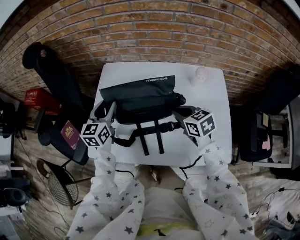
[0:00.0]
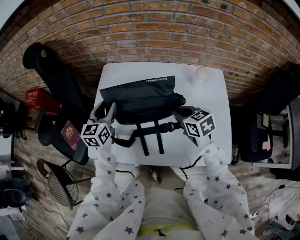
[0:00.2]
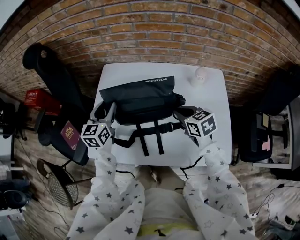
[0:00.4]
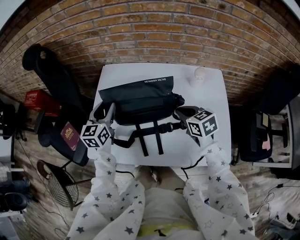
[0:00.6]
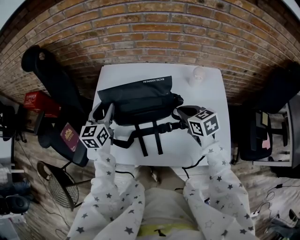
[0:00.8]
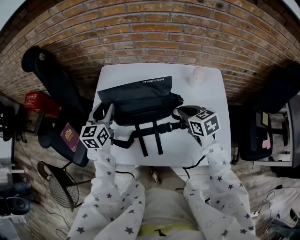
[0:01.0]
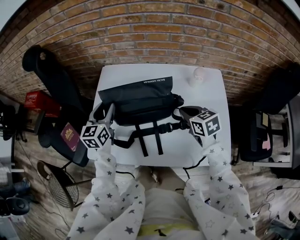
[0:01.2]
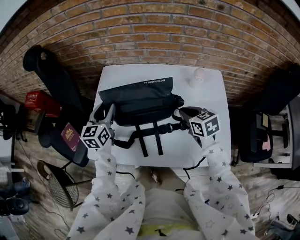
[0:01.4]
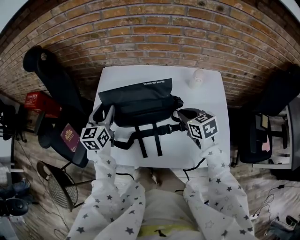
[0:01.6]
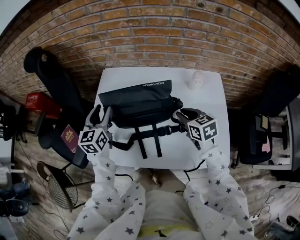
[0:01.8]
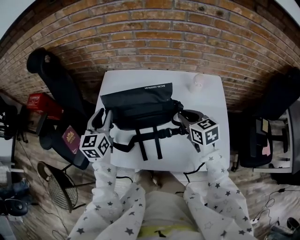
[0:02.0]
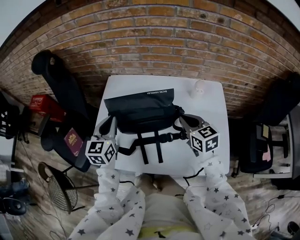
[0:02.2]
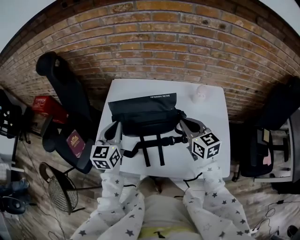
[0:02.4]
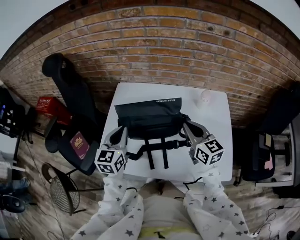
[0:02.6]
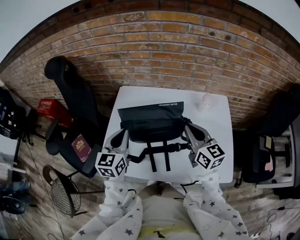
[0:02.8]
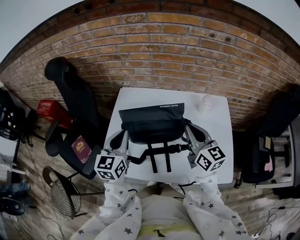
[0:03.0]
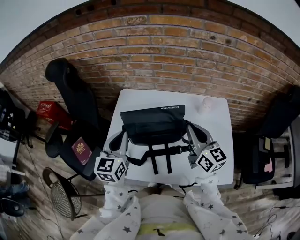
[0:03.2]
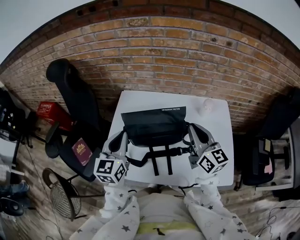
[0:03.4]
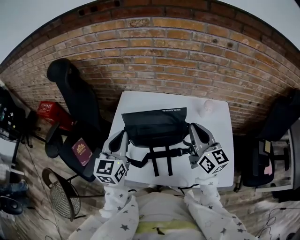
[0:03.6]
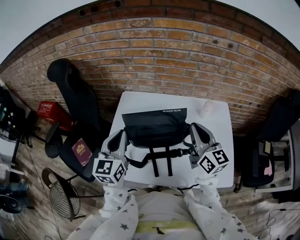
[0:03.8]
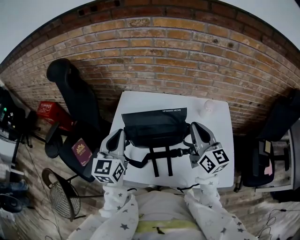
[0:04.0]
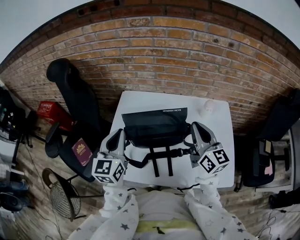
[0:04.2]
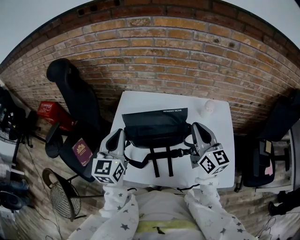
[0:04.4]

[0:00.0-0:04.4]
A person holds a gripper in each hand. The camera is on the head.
0:00.0 to 0:01.4: There are only small adjustments of the grippers.
0:01.4 to 0:03.0: The left gripper heads upward and backward, covering some 10 cm, and closes. The right gripper travels upward by approximately 15 cm, and points its fingers about 40 degrees further upward.
0:03.0 to 0:04.4: There are only small adjustments of the grippers.

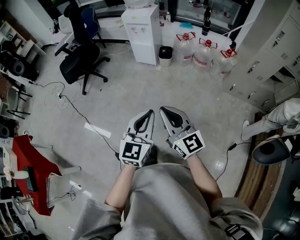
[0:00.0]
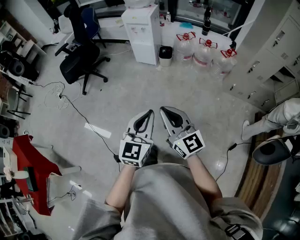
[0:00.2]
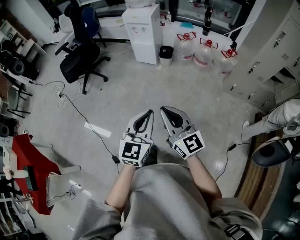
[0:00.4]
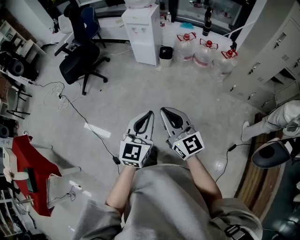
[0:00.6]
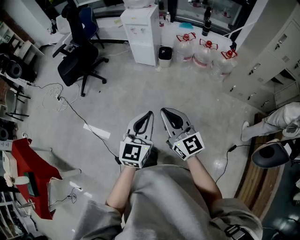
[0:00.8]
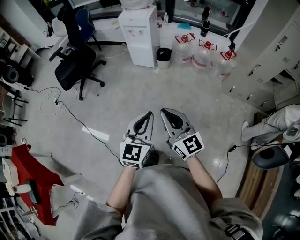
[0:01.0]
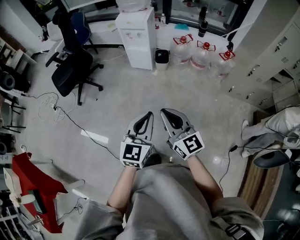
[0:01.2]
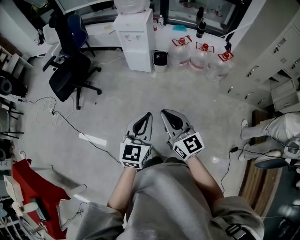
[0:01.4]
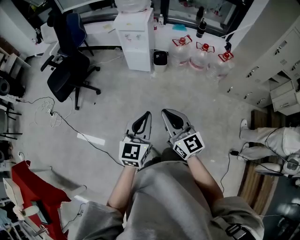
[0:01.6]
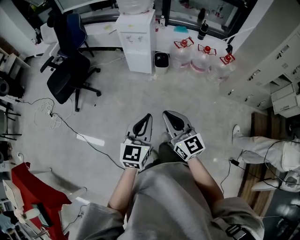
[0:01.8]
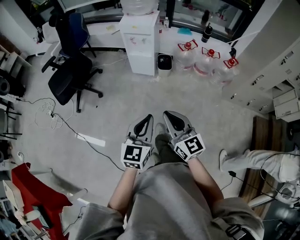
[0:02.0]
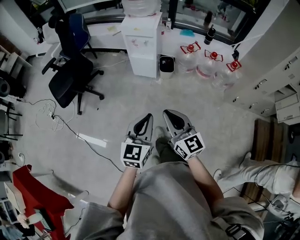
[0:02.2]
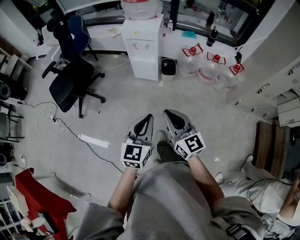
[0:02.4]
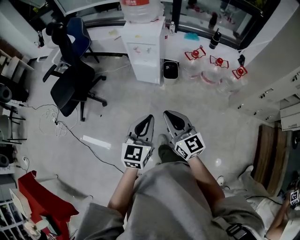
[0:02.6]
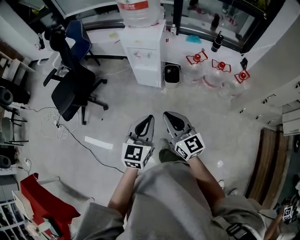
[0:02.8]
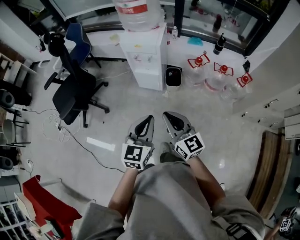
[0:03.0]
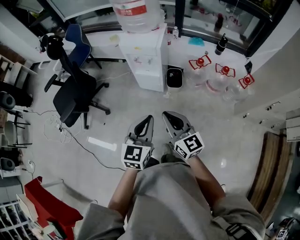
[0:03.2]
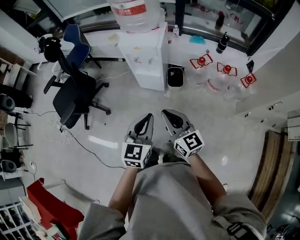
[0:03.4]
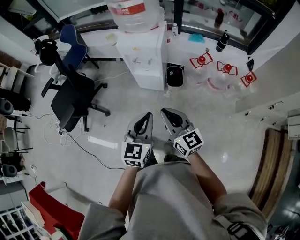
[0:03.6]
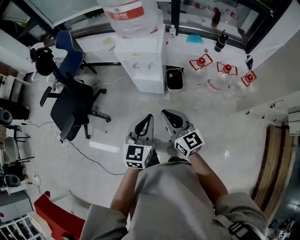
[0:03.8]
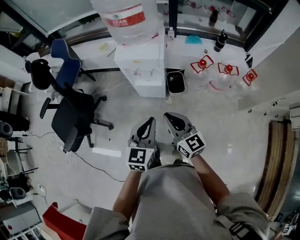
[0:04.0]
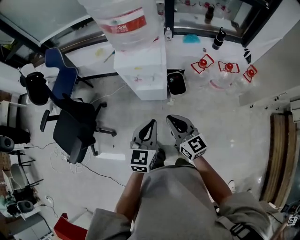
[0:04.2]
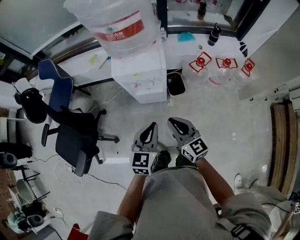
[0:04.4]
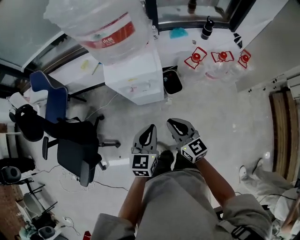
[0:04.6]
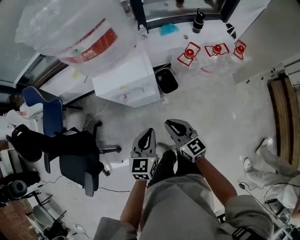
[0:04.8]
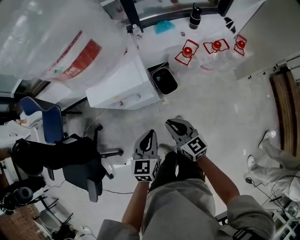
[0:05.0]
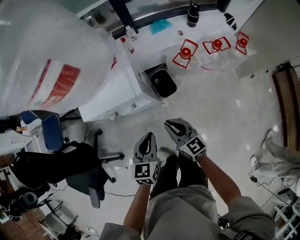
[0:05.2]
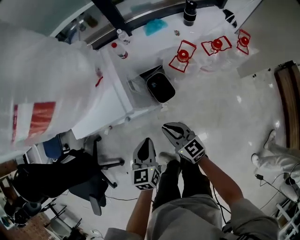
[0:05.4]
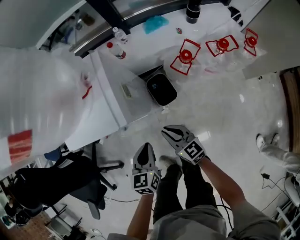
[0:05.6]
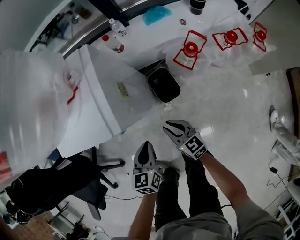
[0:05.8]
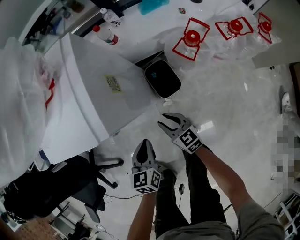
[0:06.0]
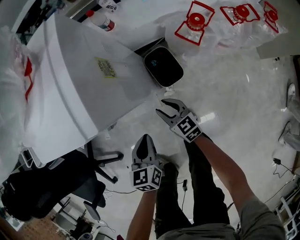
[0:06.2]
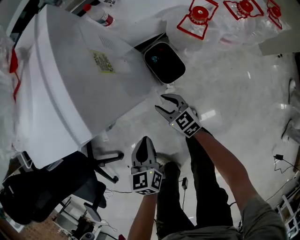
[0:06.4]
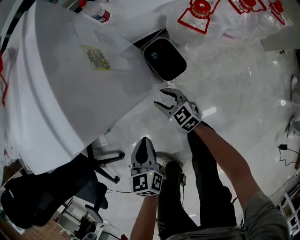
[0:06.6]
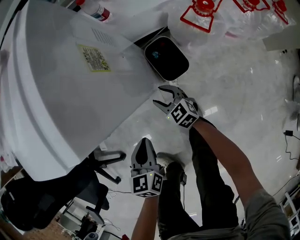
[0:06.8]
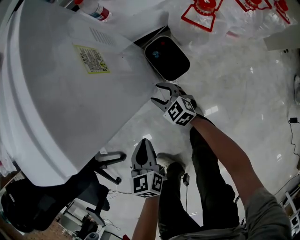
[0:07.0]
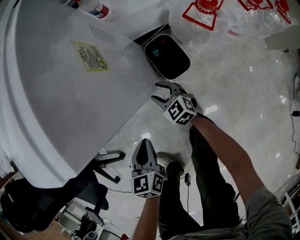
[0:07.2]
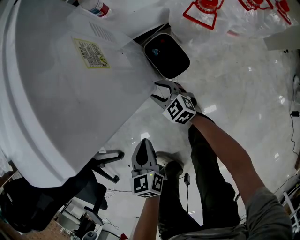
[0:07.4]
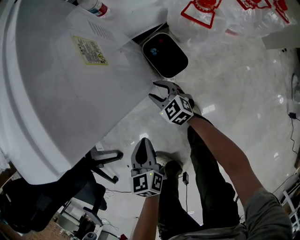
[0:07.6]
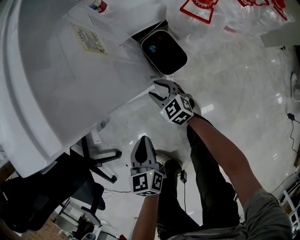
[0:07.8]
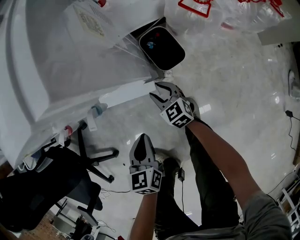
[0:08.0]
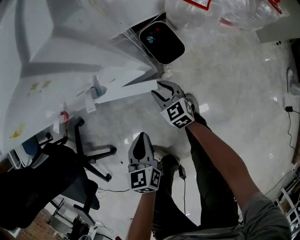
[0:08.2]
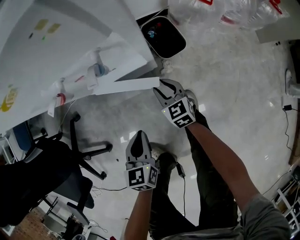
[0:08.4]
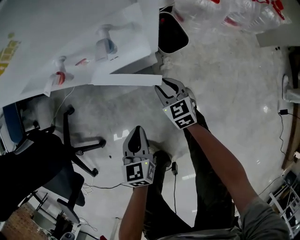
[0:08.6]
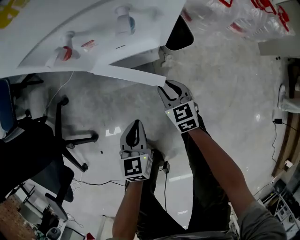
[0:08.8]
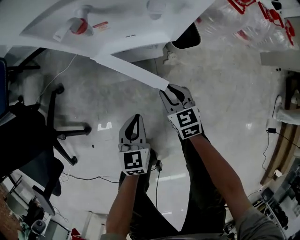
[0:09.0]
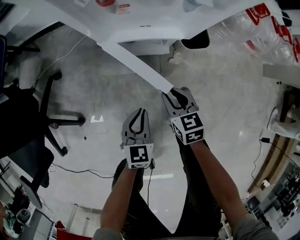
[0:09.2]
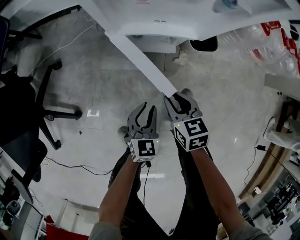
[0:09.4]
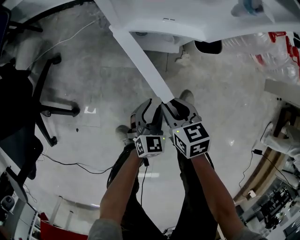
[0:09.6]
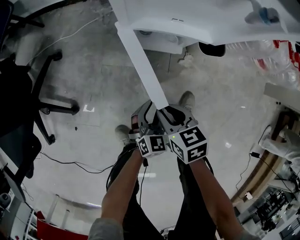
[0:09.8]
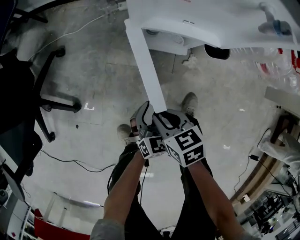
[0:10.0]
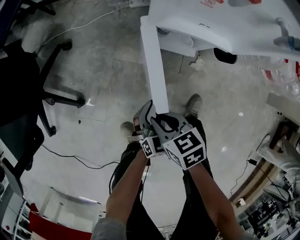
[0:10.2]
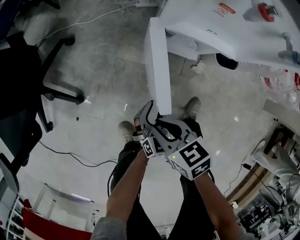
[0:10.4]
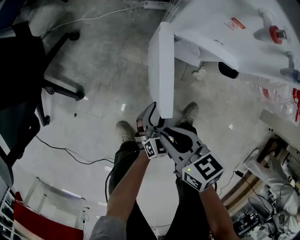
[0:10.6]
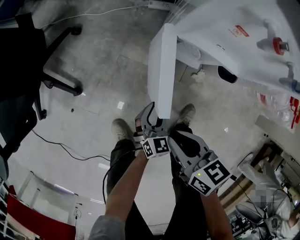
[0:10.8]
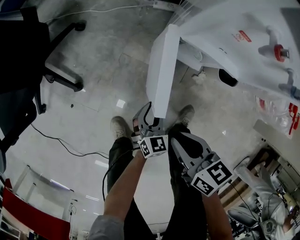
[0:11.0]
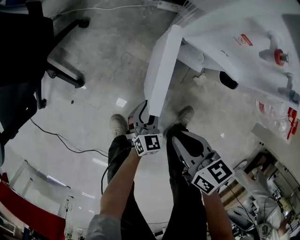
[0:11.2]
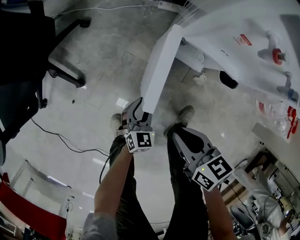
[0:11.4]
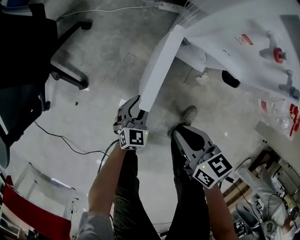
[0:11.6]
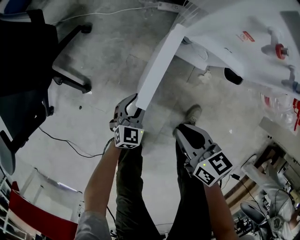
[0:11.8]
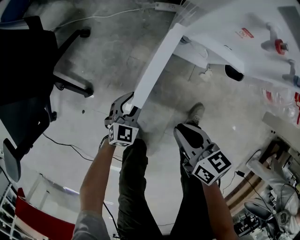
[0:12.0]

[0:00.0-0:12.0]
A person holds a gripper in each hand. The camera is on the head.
0:00.0 to 0:01.6: Both grippers move forward and to the left, approximately 20 cm.
0:01.6 to 0:03.0: The grippers both shift forward by approximately 30 cm.
0:03.0 to 0:04.4: Both grippers travel together forward, roughly 25 cm.
0:04.4 to 0:06.0: Both grippers travel together downward and forward, approximately 40 cm. The left gripper turns by about 20 degrees. The right gripper opens up.
0:06.0 to 0:07.6: The right gripper moves downward and forward, some 15 cm, and swivels some 20 degrees. Meanwhile the left gripper travels downward and to the left by about 10 cm.
0:07.6 to 0:09.0: The left gripper is displaced backward, downward and to the left by about 15 cm, while the right gripper travels backward by approximately 15 cm.
0:09.0 to 0:10.4: The right gripper changes place by about 20 cm, and rotates some 40 degrees, while the left gripper is displaced downward by some 15 cm, and opens up.
0:10.4 to 0:12.0: The left gripper shifts some 15 cm to the left and forward.

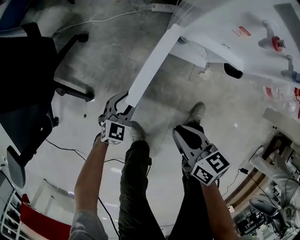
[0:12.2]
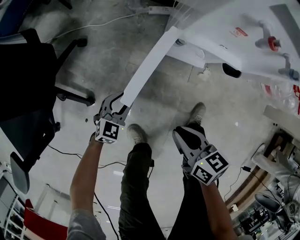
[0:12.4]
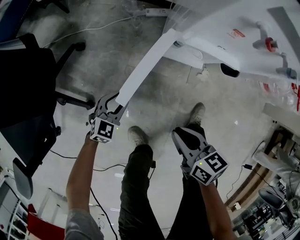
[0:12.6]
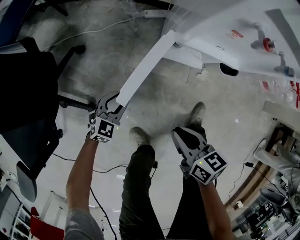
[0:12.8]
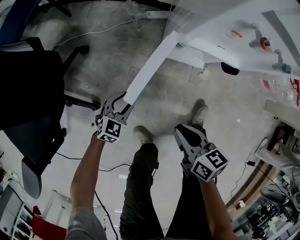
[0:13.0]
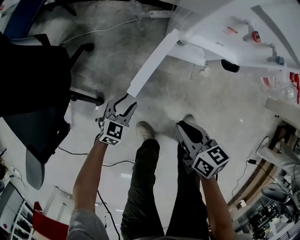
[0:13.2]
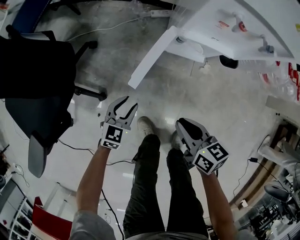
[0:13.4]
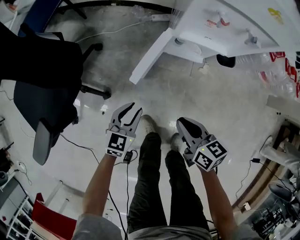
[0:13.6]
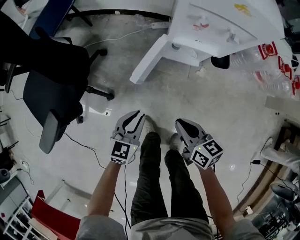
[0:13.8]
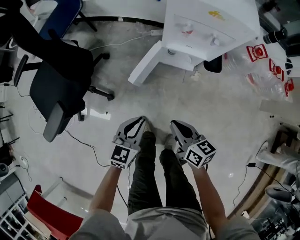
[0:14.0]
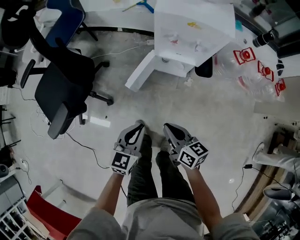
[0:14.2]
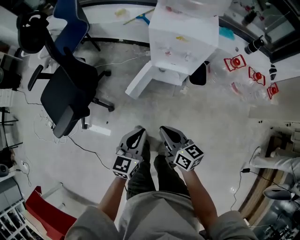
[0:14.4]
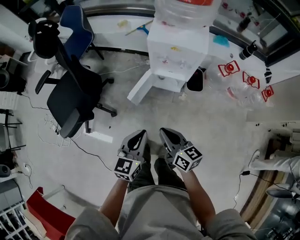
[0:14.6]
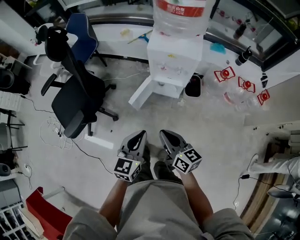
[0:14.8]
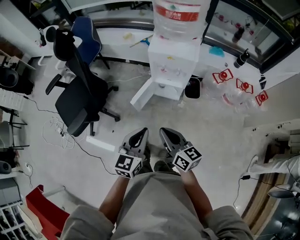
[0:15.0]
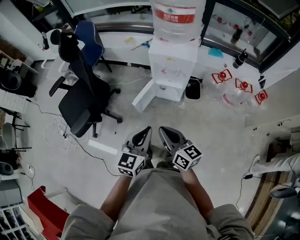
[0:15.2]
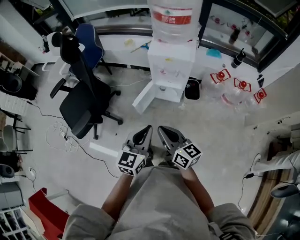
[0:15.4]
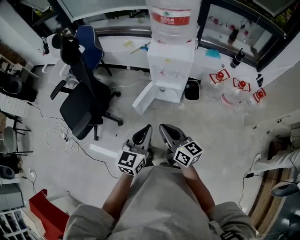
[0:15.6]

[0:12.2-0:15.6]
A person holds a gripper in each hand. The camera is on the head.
0:12.2 to 0:13.8: The right gripper goes roughly 15 cm upward and backward. Meanwhile the left gripper shifts about 25 cm upward, and closes.
0:13.8 to 0:15.6: The two grippers go about 40 cm upward. The right gripper swivels roughly 30 degrees.

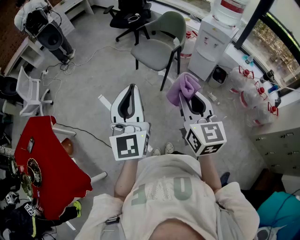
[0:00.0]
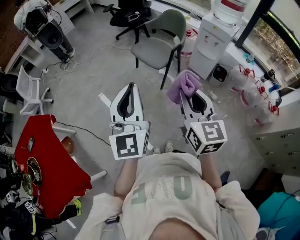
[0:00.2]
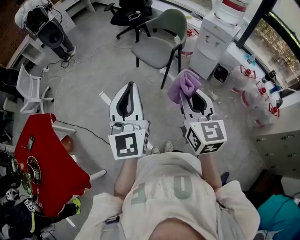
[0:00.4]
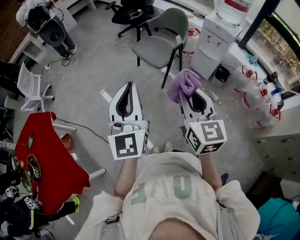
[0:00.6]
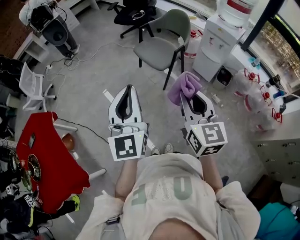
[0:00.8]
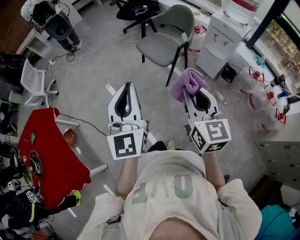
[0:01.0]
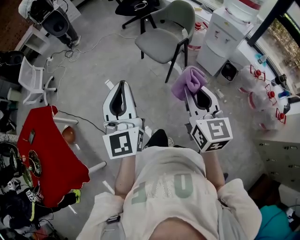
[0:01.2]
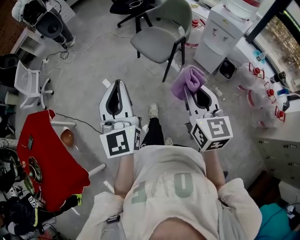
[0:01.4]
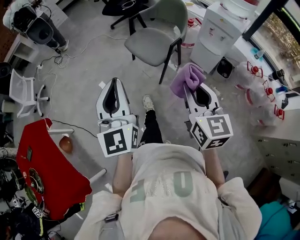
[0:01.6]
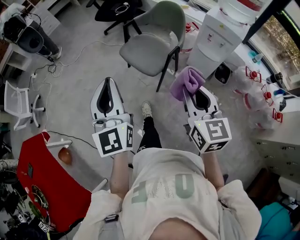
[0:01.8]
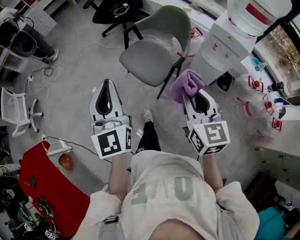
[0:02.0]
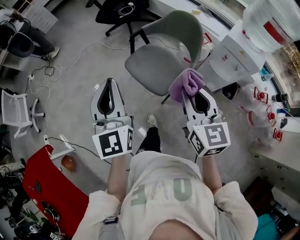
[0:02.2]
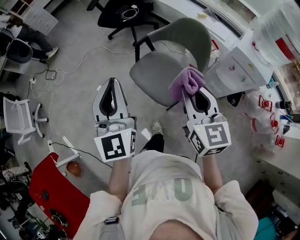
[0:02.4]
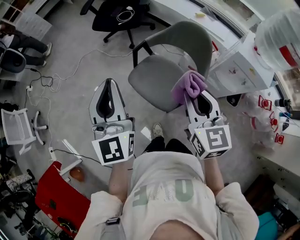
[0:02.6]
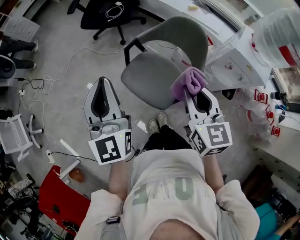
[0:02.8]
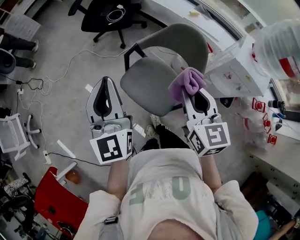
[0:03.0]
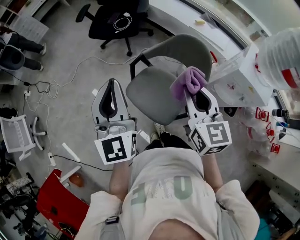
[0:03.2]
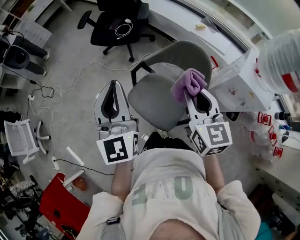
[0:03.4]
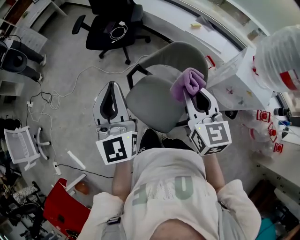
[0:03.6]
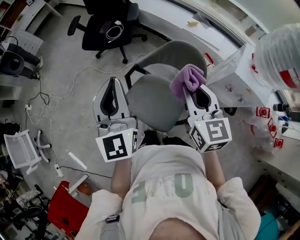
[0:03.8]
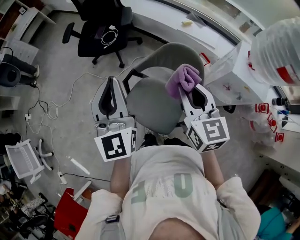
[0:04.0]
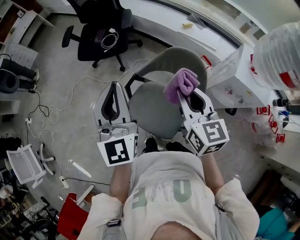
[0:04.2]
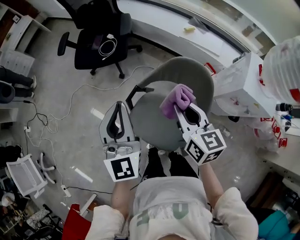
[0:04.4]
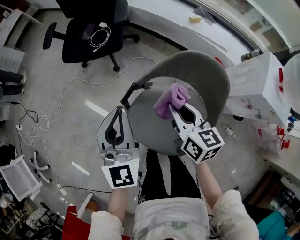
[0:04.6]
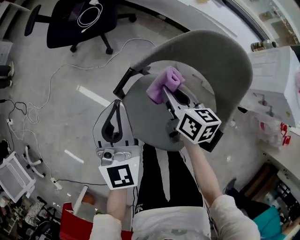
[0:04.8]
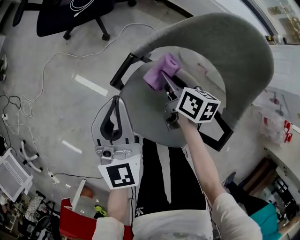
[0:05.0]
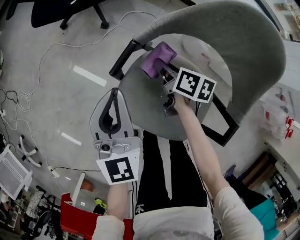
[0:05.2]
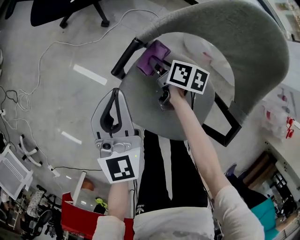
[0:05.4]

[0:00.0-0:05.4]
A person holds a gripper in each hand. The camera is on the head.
0:00.0 to 0:01.4: The left gripper travels forward by roughly 10 cm. The right gripper is displaced forward and to the right by approximately 10 cm.
0:01.4 to 0:02.8: The pair of grippers is taken forward, approximately 50 cm.
0:02.8 to 0:04.0: The right gripper is displaced forward by approximately 15 cm; the left gripper goes roughly 15 cm forward and to the right.
0:04.0 to 0:05.4: Both grippers move downward, about 50 cm. The right gripper twists approximately 50 degrees clockwise, seen from behind.
